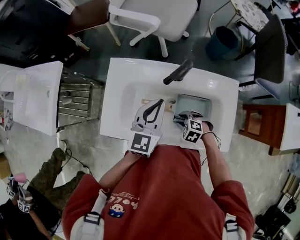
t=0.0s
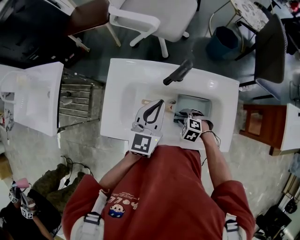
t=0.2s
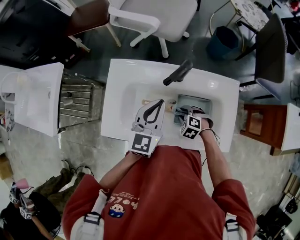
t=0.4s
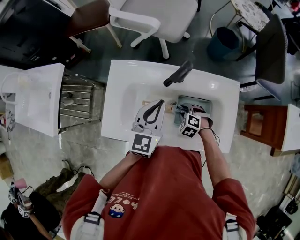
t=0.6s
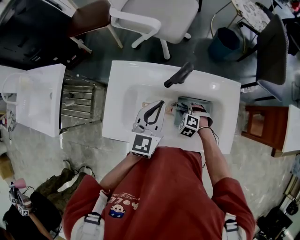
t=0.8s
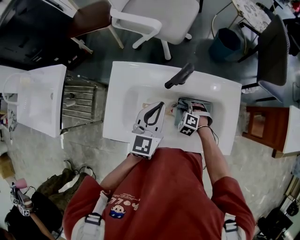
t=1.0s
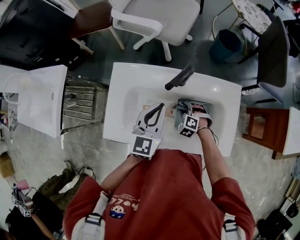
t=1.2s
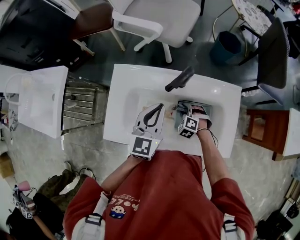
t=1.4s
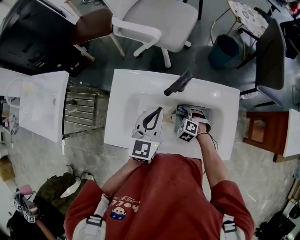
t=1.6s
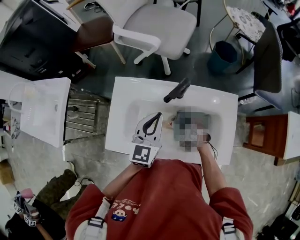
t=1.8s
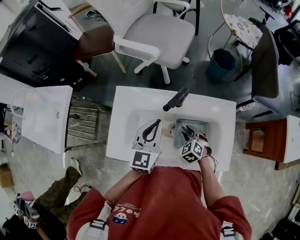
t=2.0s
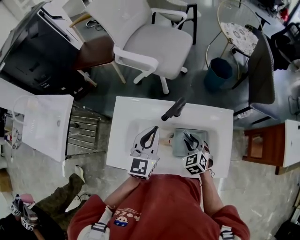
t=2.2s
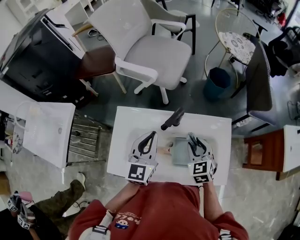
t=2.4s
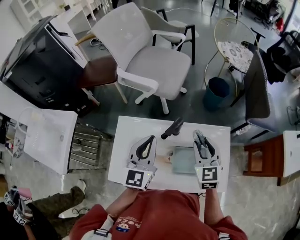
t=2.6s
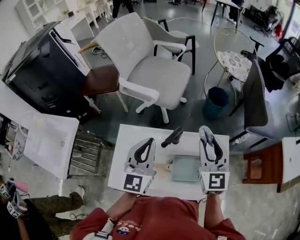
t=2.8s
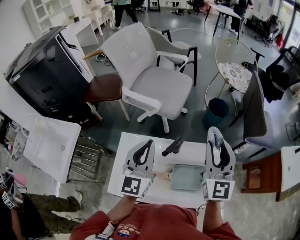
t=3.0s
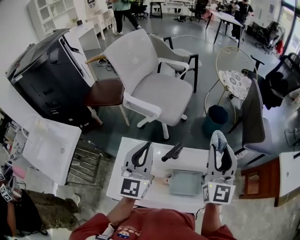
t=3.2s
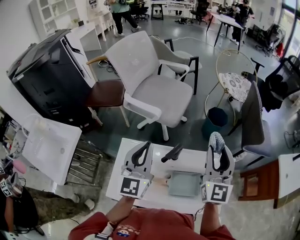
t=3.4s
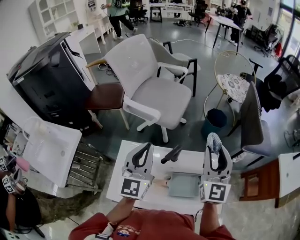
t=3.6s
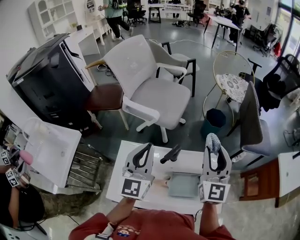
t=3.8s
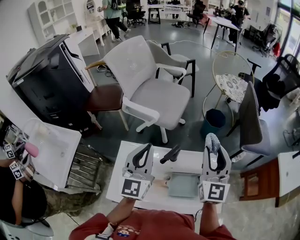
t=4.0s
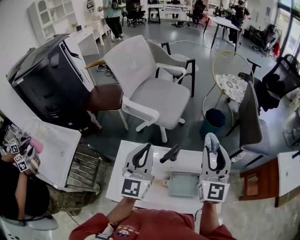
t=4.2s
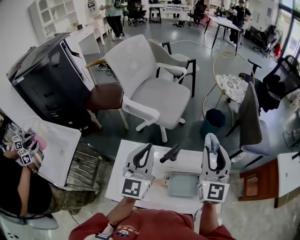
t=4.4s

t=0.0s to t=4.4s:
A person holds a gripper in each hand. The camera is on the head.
t=0.0s to t=1.4s: The right gripper travels forward by approximately 10 cm, and turns by approximately 20 degrees.
t=1.4s to t=3.0s: The left gripper moves upward, roughly 20 cm, and changes its angle by approximately 20 degrees. The right gripper goes approximately 50 cm upward, and angles its fingers upward, by some 70 degrees.
t=3.0s to t=4.4s: The grippers make only small movements.

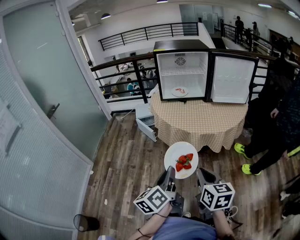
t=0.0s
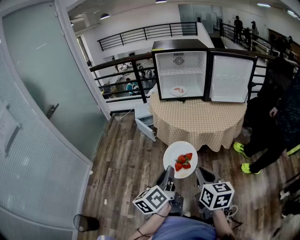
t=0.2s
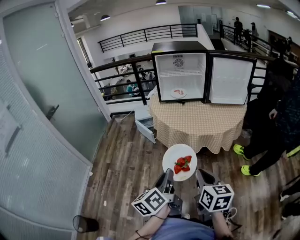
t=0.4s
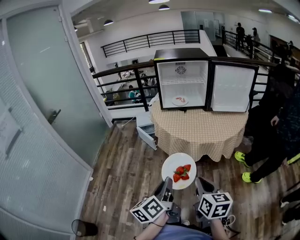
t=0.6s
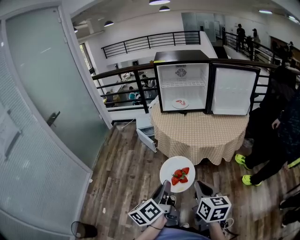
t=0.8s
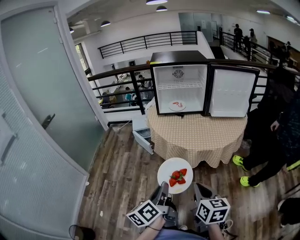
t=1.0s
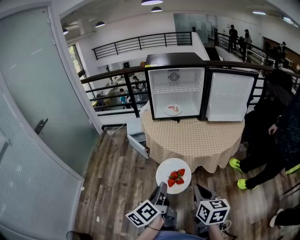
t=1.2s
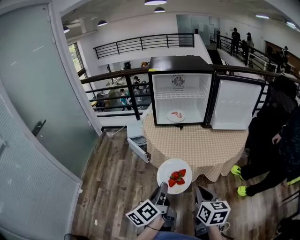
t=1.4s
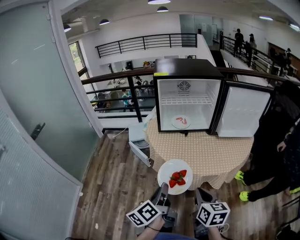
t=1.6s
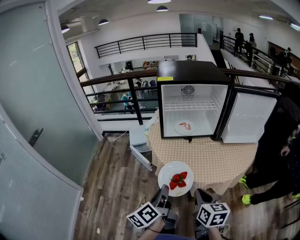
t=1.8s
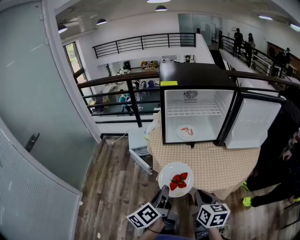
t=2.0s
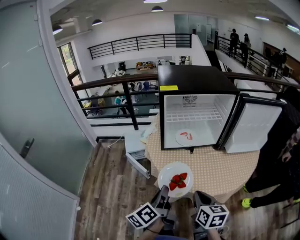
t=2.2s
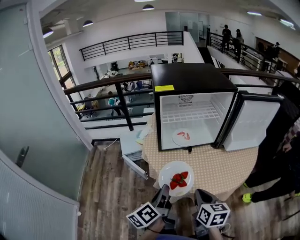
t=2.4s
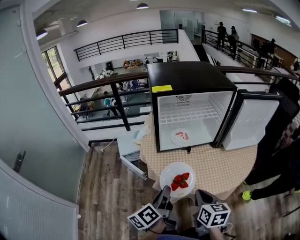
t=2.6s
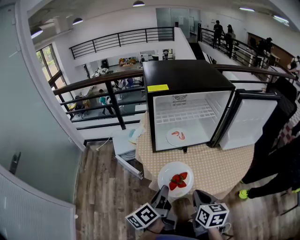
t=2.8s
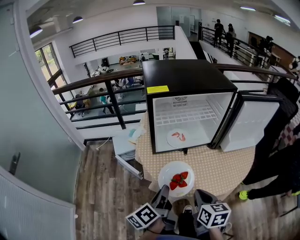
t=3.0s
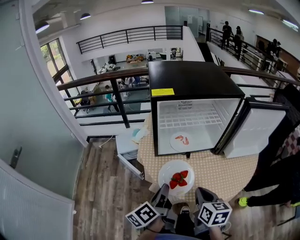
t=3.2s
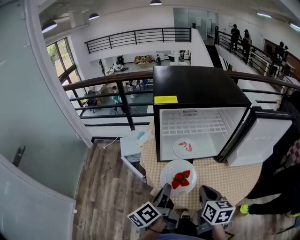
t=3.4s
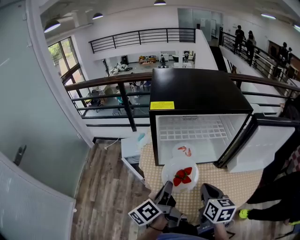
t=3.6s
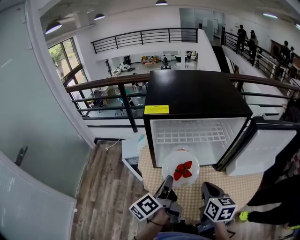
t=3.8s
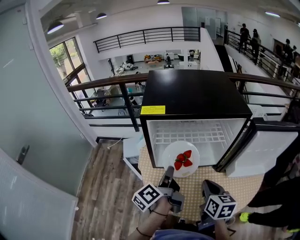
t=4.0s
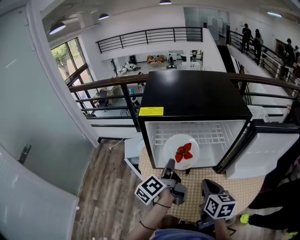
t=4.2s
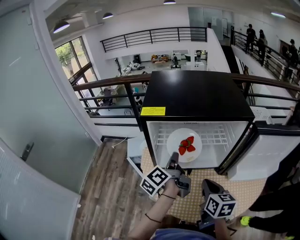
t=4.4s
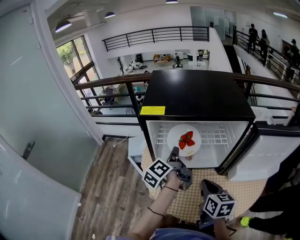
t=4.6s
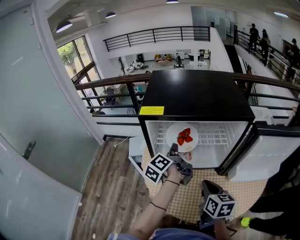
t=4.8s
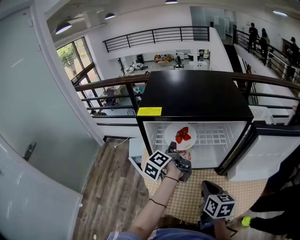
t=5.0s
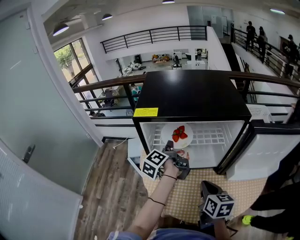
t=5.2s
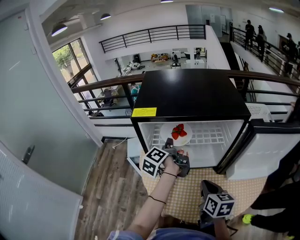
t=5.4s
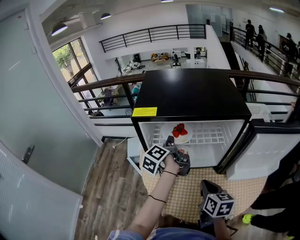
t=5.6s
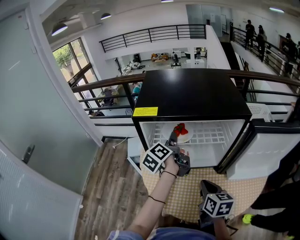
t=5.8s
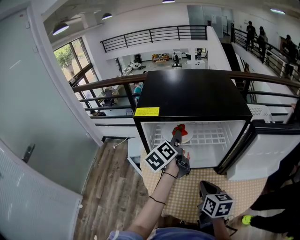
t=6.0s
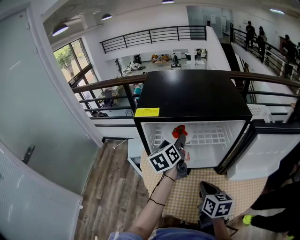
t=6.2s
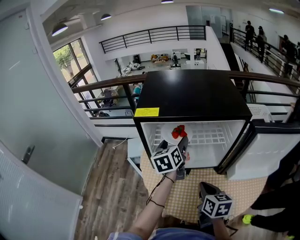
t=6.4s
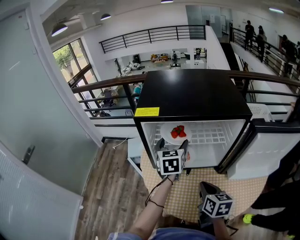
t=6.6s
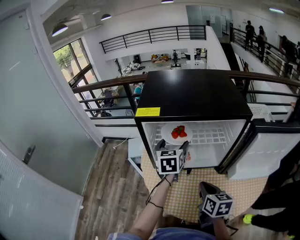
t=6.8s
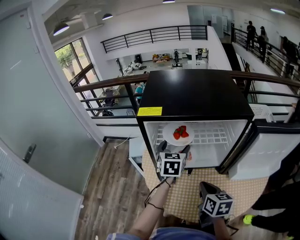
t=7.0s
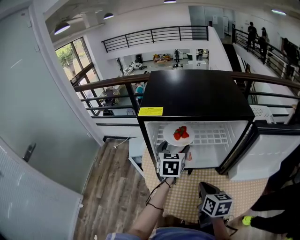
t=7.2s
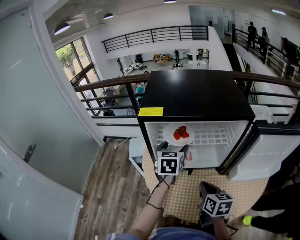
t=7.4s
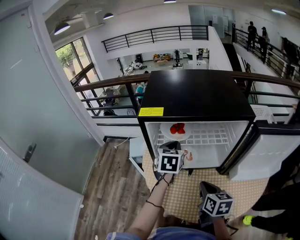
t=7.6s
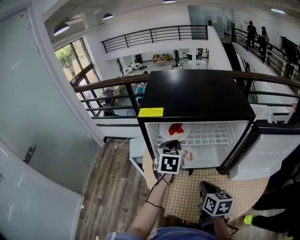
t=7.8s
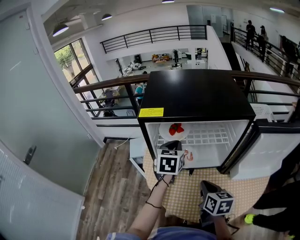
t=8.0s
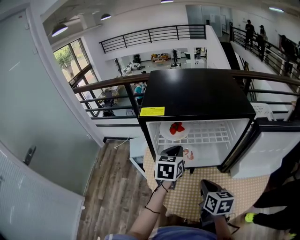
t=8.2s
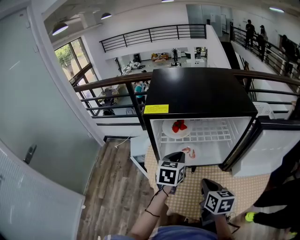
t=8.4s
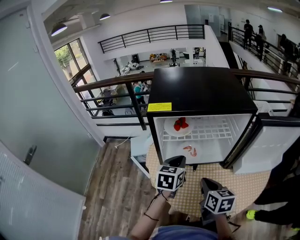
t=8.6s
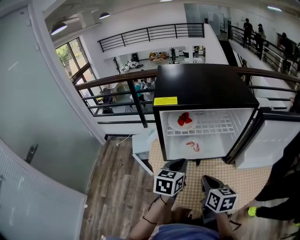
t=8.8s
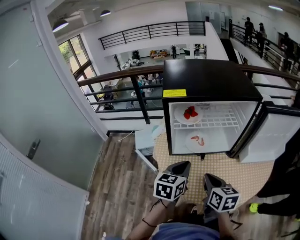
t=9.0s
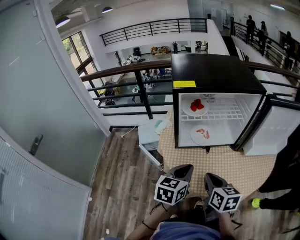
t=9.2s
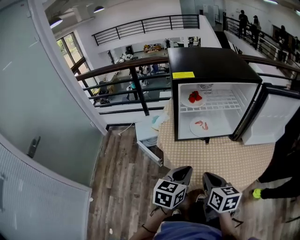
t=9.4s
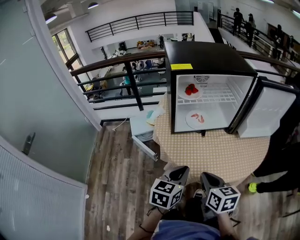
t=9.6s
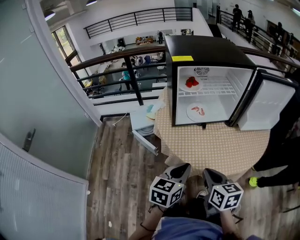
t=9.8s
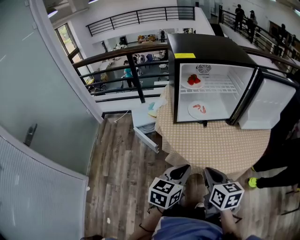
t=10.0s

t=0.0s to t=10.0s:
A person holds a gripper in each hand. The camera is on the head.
t=0.0s to t=1.4s: The grippers both shift forward by roughly 15 cm.
t=1.4s to t=2.8s: The grippers both shift forward by some 25 cm.
t=2.8s to t=4.2s: The right gripper travels forward and to the right by some 20 cm, while the left gripper travels forward by some 25 cm.
t=4.2s to t=5.8s: The left gripper heads forward, covering approximately 10 cm.
t=5.8s to t=7.2s: The left gripper twists roughly 60 degrees clockwise, seen from behind, and opens up.
t=7.2s to t=8.6s: The left gripper heads backward, covering about 10 cm, and closes up.
t=8.6s to t=10.0s: Both grippers travel together backward, roughly 25 cm.

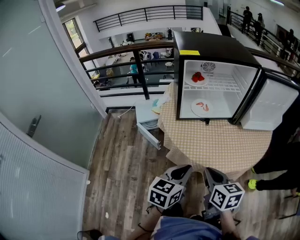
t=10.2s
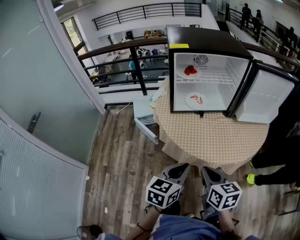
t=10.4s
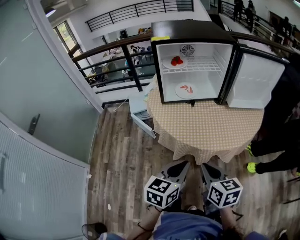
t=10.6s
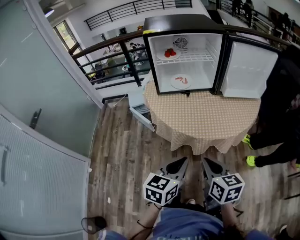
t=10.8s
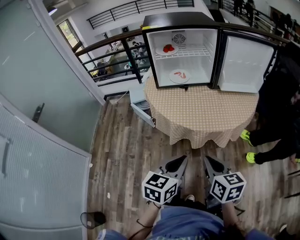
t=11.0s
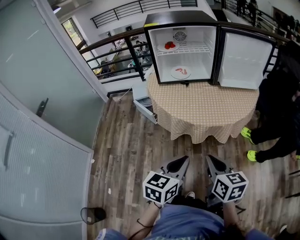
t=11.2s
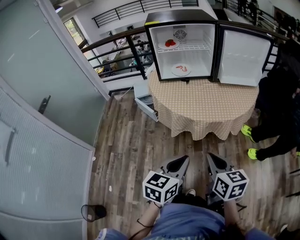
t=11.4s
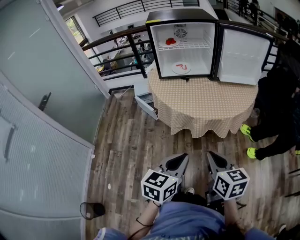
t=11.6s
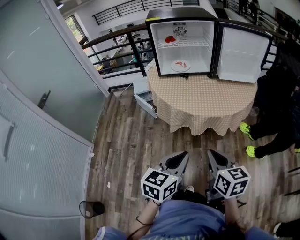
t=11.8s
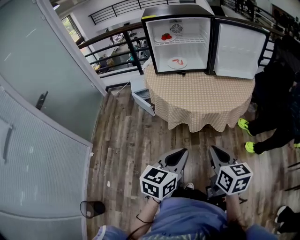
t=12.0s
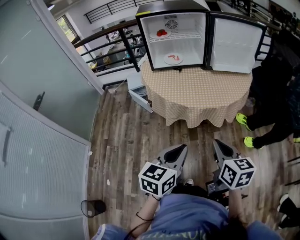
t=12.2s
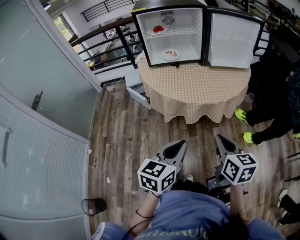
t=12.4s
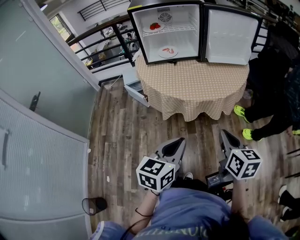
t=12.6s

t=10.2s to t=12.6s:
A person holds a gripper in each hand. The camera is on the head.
t=10.2s to t=11.4s: The two grippers go roughly 30 cm backward and to the right.
t=11.4s to t=12.6s: The right gripper heads to the right, covering approximately 10 cm.

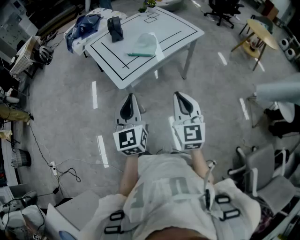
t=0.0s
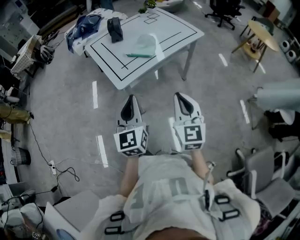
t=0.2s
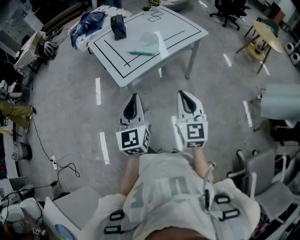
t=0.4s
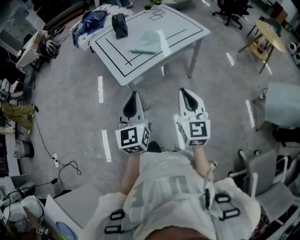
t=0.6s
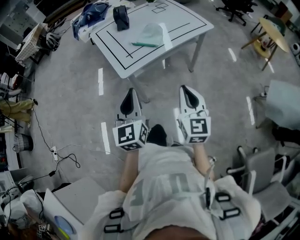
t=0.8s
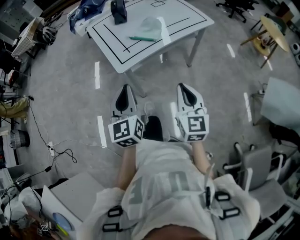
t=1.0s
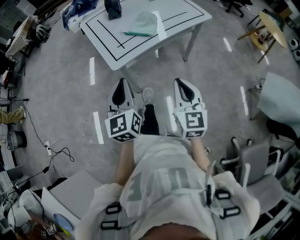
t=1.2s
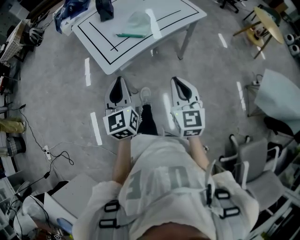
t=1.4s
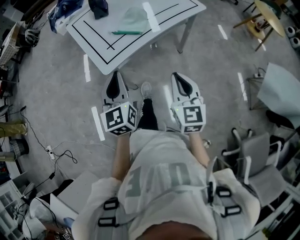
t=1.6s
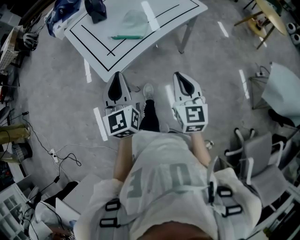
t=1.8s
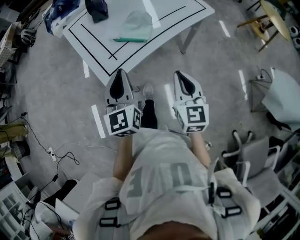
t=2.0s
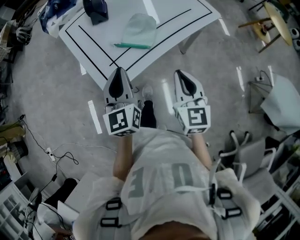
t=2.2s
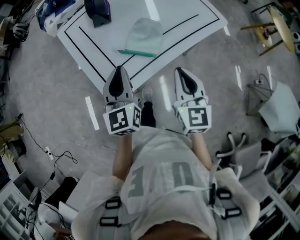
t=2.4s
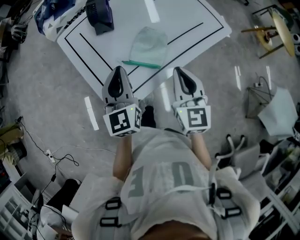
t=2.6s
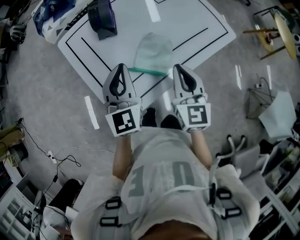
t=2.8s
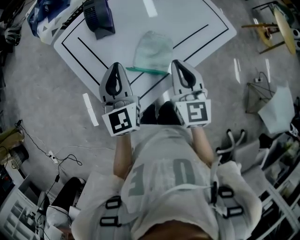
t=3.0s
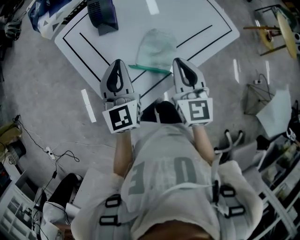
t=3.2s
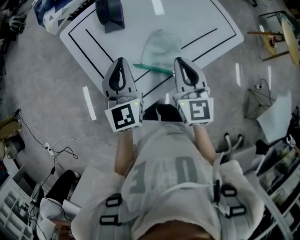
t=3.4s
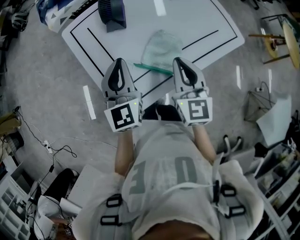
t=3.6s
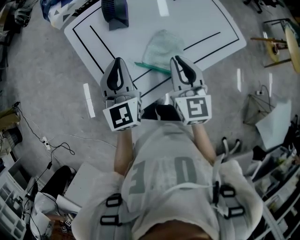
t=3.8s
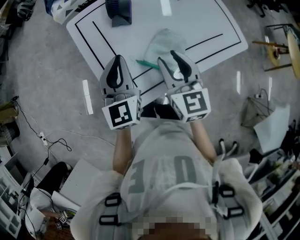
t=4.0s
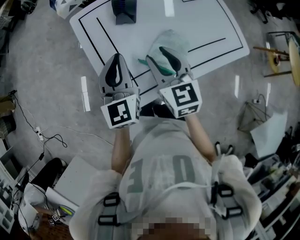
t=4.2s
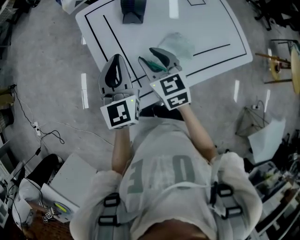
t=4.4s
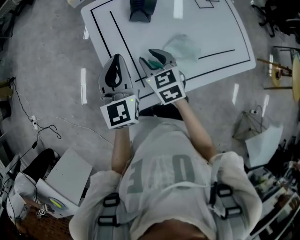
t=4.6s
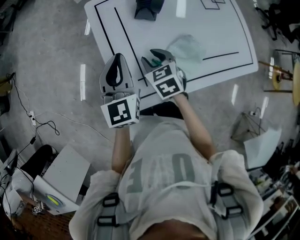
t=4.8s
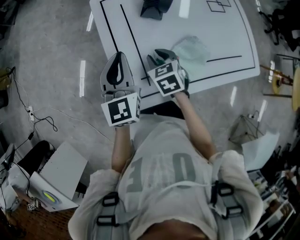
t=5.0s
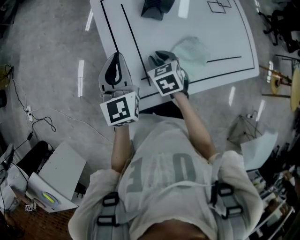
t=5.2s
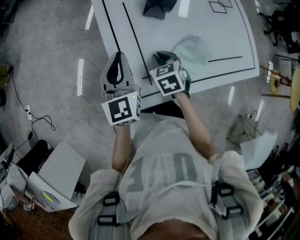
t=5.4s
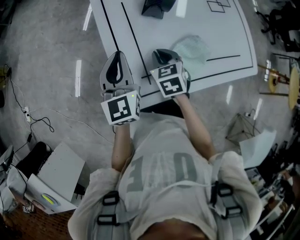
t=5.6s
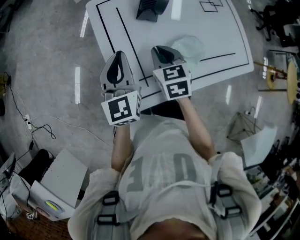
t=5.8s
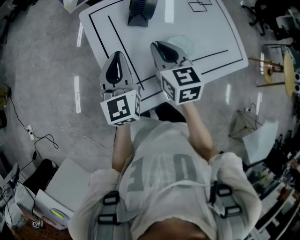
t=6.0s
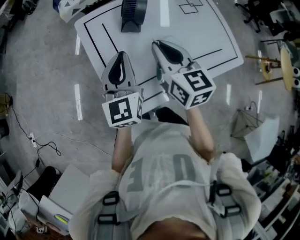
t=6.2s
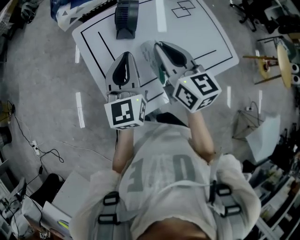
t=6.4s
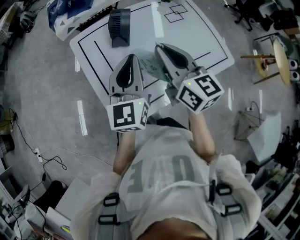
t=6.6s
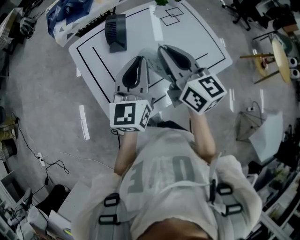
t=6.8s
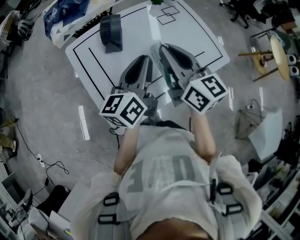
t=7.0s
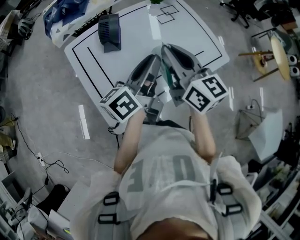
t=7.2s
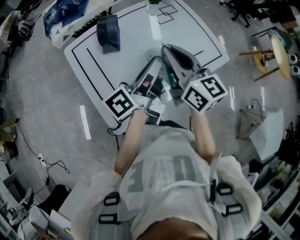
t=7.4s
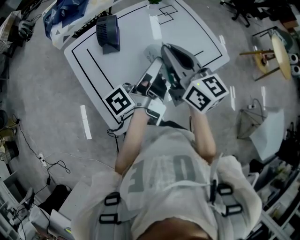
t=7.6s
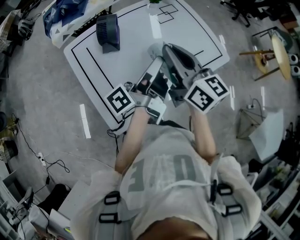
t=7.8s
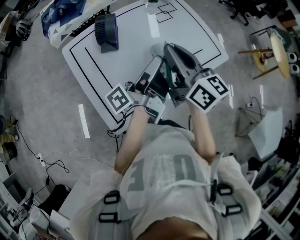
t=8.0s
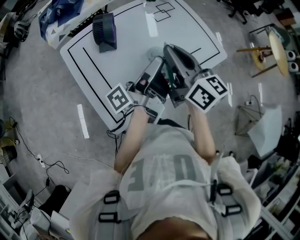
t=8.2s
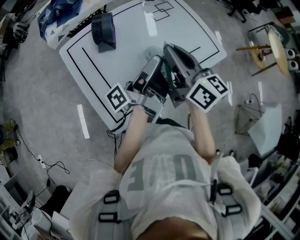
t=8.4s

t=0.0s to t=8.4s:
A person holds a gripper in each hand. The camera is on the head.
t=0.0s to t=1.4s: The left gripper shifts by about 5 cm. The right gripper changes place by roughly 5 cm.
t=1.4s to t=2.8s: The two grippers go approximately 35 cm forward.
t=2.8s to t=4.2s: The left gripper moves to the left, roughly 5 cm. Meanwhile the right gripper shifts some 15 cm to the left and forward, rotates roughly 20 degrees, and opens.
t=4.2s to t=5.6s: The right gripper goes roughly 15 cm downward and to the left, changes its angle by roughly 30 degrees, and closes up; the left gripper travels to the left by about 10 cm.
t=5.6s to t=7.0s: The right gripper shifts approximately 30 cm upward and to the right, and points its fingers some 50 degrees further upward, while the left gripper heads to the right and upward, covering approximately 25 cm, and changes its angle by roughly 50 degrees.
t=7.0s to t=8.4s: The left gripper goes about 5 cm to the right, and twists about 60 degrees counterclockwise, seen from behind.
